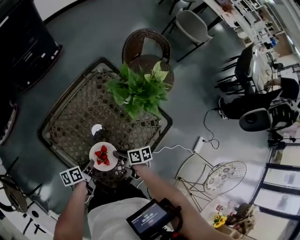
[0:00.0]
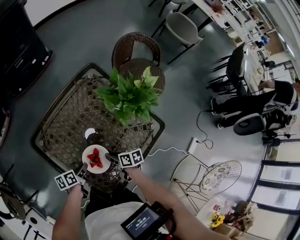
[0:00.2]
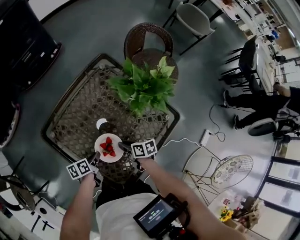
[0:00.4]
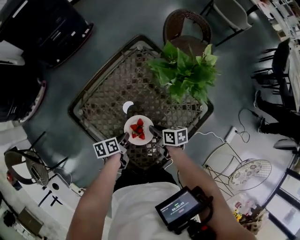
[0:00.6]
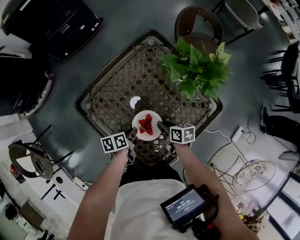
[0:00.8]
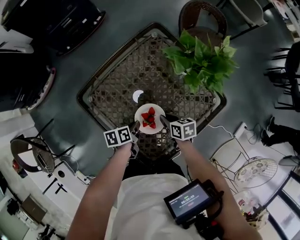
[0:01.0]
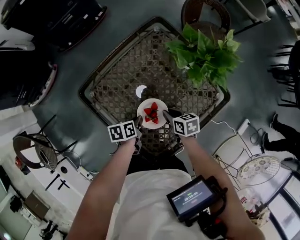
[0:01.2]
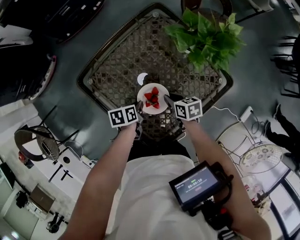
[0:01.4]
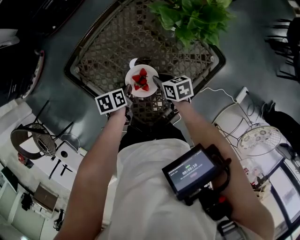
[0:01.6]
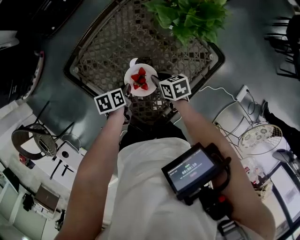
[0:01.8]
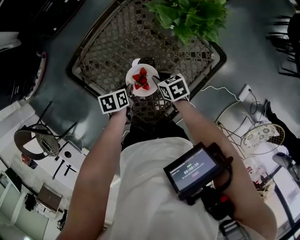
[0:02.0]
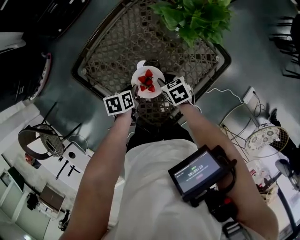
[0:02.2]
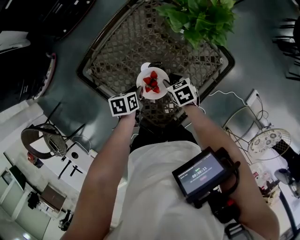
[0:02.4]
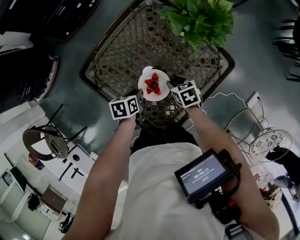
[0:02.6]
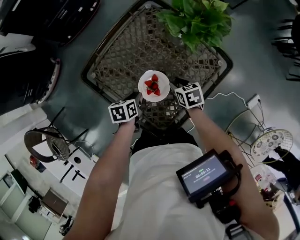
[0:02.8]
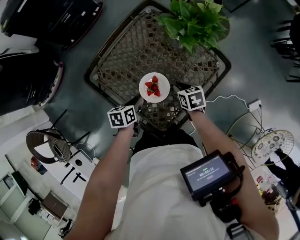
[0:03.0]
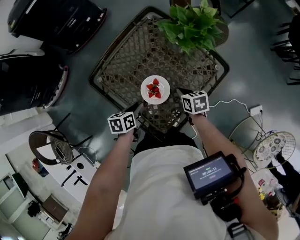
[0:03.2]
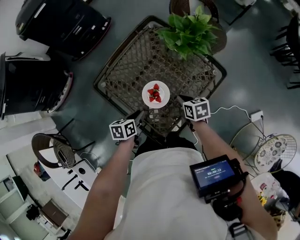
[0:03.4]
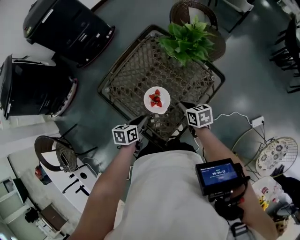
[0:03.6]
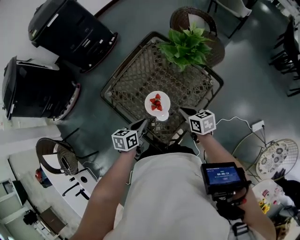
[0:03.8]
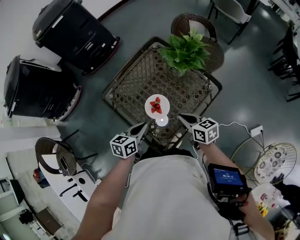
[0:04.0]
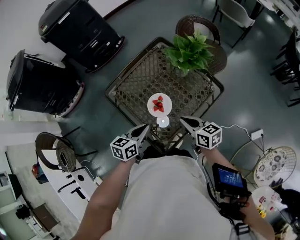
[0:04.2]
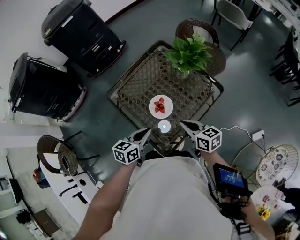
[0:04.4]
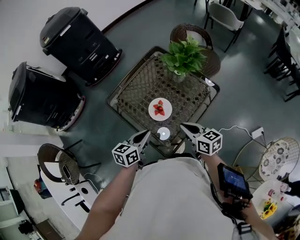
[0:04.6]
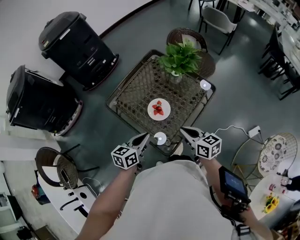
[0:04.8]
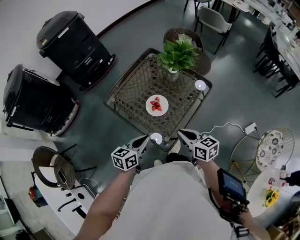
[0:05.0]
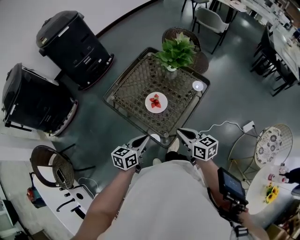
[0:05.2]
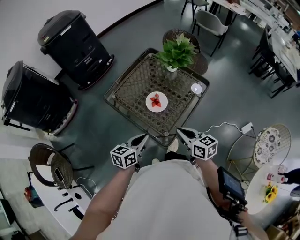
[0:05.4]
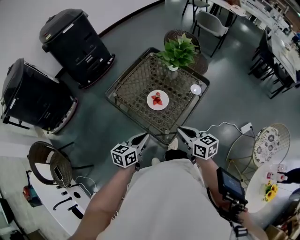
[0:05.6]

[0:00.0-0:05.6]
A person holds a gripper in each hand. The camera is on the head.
0:00.0 to 0:01.4: The right gripper swivels about 20 degrees.
0:01.4 to 0:02.8: The right gripper opens up.
0:02.8 to 0:04.2: The right gripper shifts roughly 20 cm upward, points its fingers approximately 30 degrees further upward, and closes its fingers.
0:04.2 to 0:05.6: The right gripper changes place by roughly 20 cm.

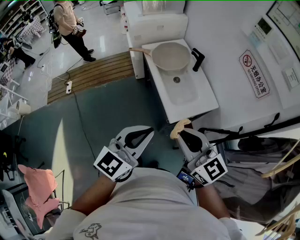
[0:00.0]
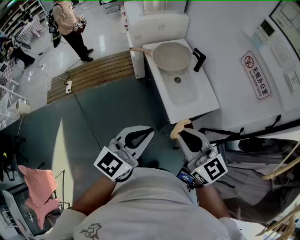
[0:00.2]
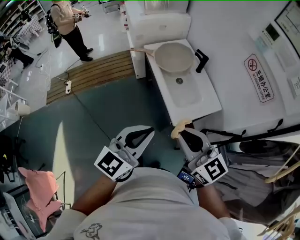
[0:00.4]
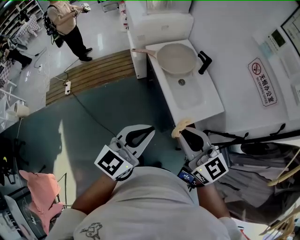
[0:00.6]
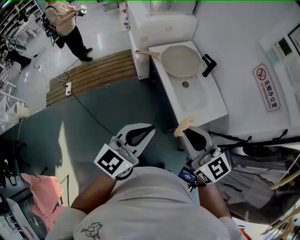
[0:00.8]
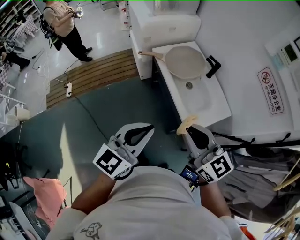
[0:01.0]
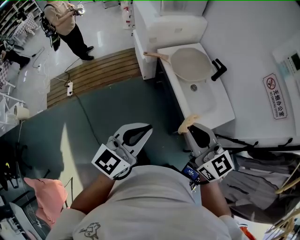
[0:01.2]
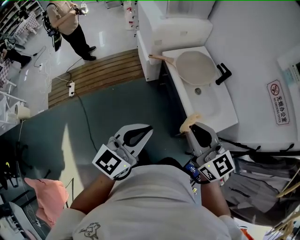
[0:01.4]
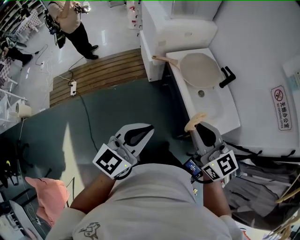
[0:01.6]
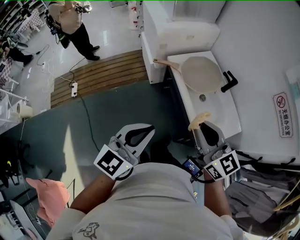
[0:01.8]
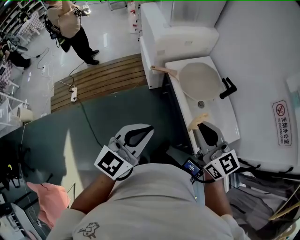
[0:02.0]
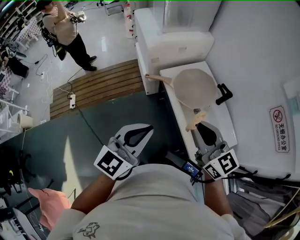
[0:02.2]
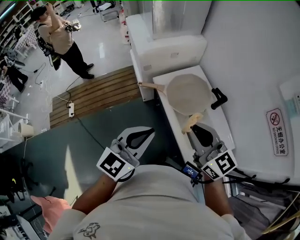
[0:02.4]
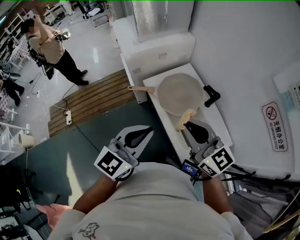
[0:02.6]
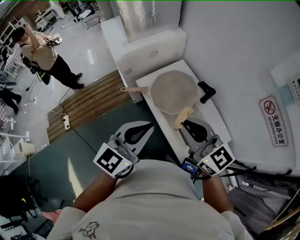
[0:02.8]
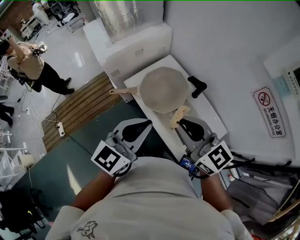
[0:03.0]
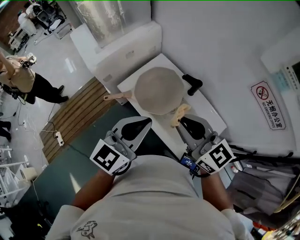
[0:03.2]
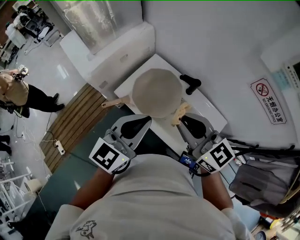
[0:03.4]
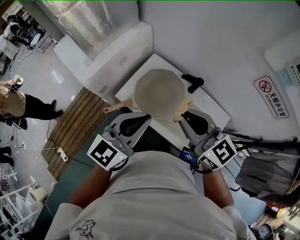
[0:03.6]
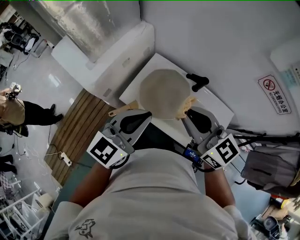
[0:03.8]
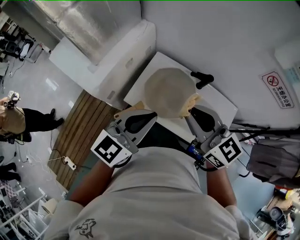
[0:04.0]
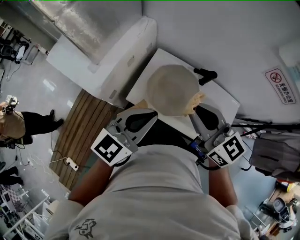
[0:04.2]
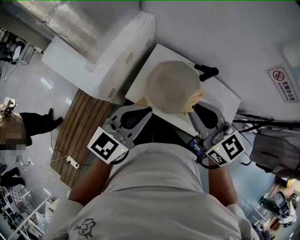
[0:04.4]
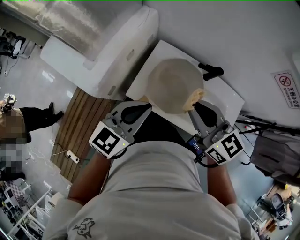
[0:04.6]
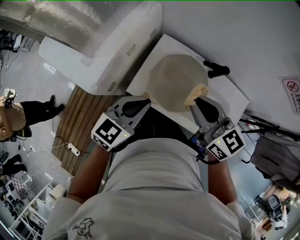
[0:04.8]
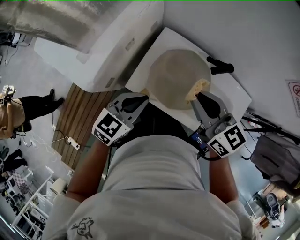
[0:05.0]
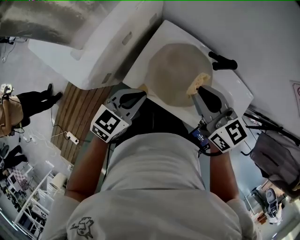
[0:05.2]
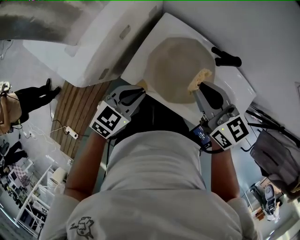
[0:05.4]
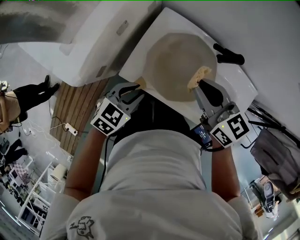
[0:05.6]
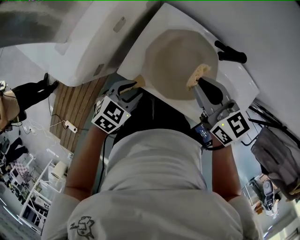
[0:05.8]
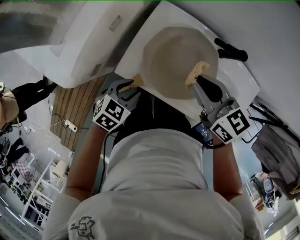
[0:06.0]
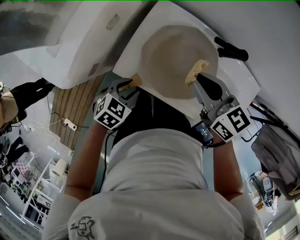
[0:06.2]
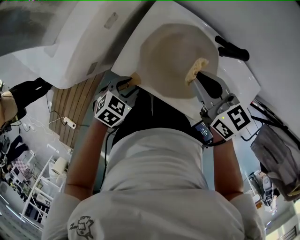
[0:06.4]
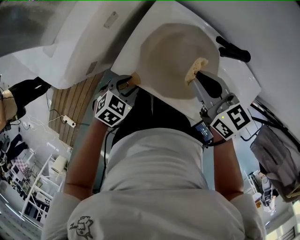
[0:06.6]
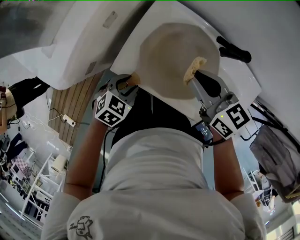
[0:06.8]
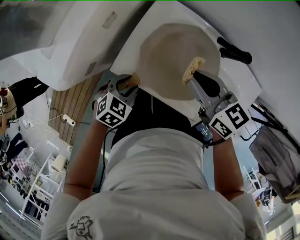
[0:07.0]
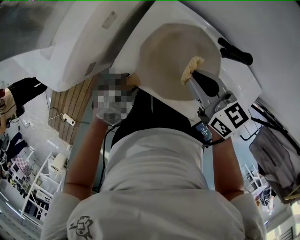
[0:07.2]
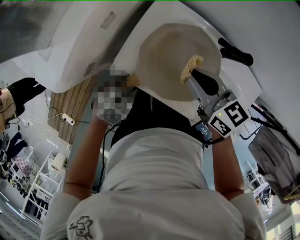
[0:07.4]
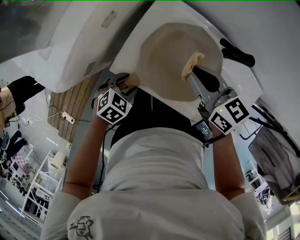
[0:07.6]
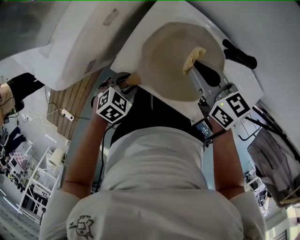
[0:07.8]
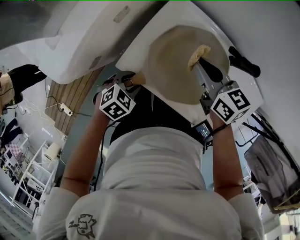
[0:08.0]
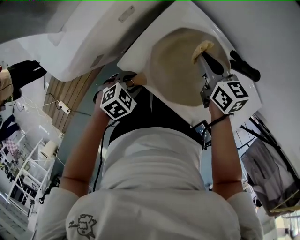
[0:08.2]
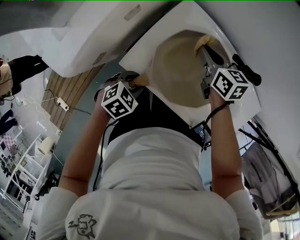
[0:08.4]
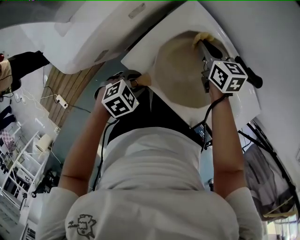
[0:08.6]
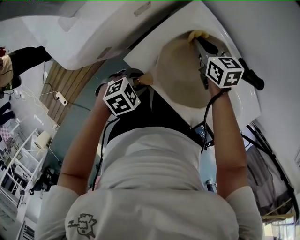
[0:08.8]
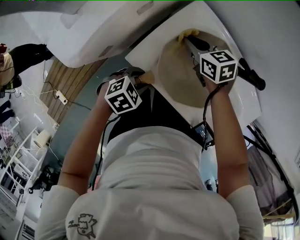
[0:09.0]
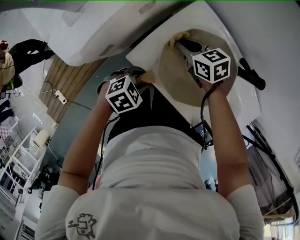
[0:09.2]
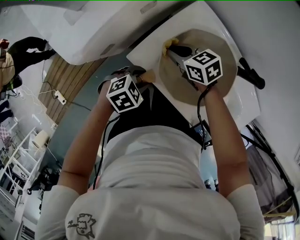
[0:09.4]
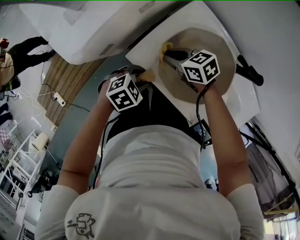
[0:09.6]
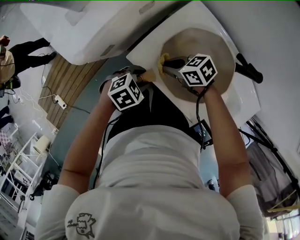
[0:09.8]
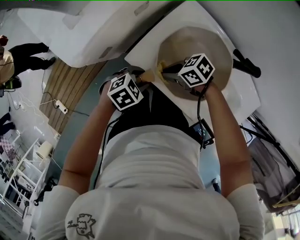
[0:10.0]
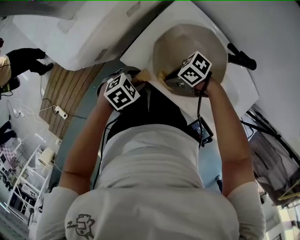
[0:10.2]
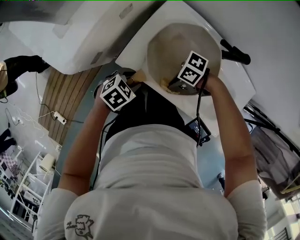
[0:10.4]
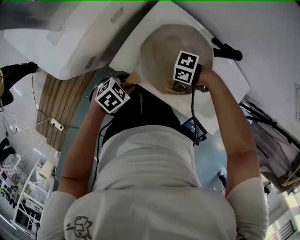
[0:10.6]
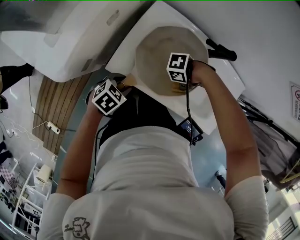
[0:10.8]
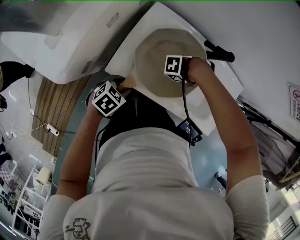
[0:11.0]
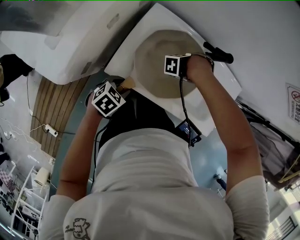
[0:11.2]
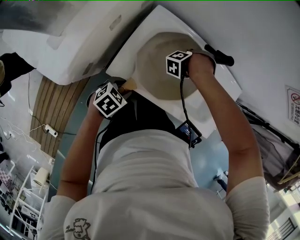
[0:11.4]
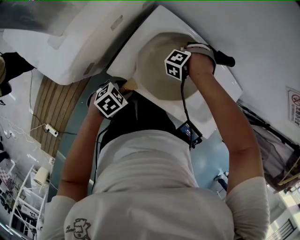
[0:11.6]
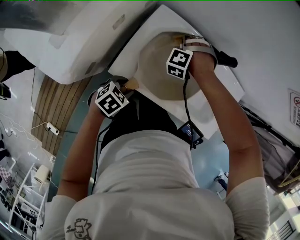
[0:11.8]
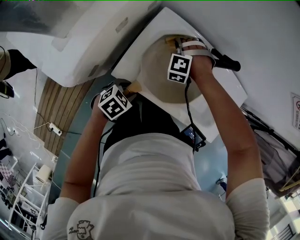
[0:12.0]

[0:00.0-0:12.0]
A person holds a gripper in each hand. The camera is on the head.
0:00.0 to 0:01.6: The grippers both shift to the left and forward by about 30 cm.
0:01.6 to 0:03.0: The two grippers go about 30 cm forward and to the right.
0:03.0 to 0:04.4: The right gripper changes place by approximately 20 cm, and swivels approximately 30 degrees. The left gripper changes place by roughly 25 cm, and changes its angle by roughly 30 degrees.
0:04.4 to 0:06.0: The right gripper travels downward and forward by roughly 20 cm, while the left gripper moves downward, roughly 30 cm, tilts its fingers about 40 degrees downward, and opens up.
0:06.0 to 0:07.6: Both grippers travel together downward, about 5 cm.
0:07.6 to 0:09.0: The right gripper shifts by approximately 15 cm.
0:09.0 to 0:10.4: The right gripper moves some 25 cm, and rotates roughly 60 degrees.
0:10.4 to 0:12.0: The right gripper ends up approximately 25 cm from where it was, and swivels roughly 100 degrees.

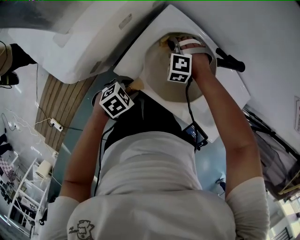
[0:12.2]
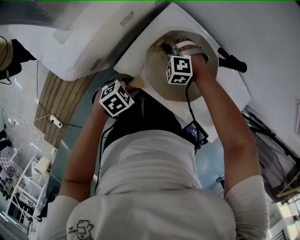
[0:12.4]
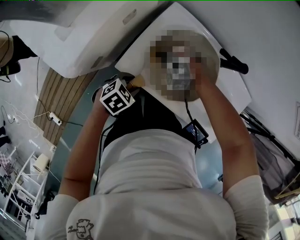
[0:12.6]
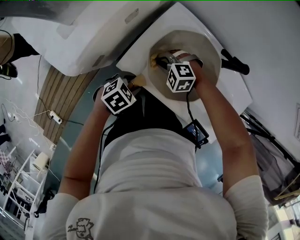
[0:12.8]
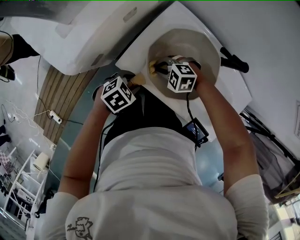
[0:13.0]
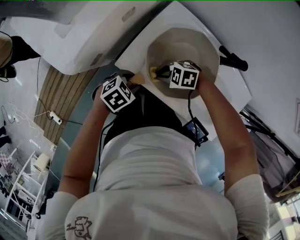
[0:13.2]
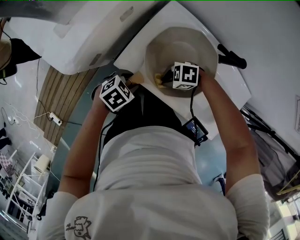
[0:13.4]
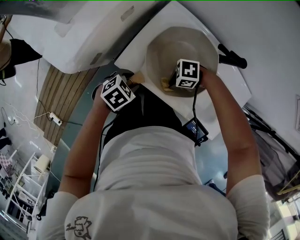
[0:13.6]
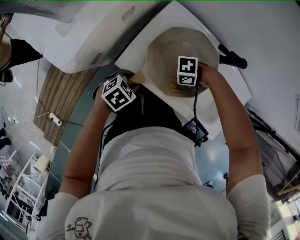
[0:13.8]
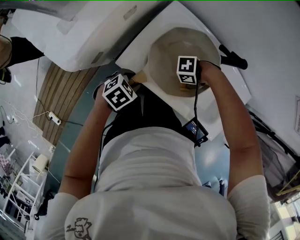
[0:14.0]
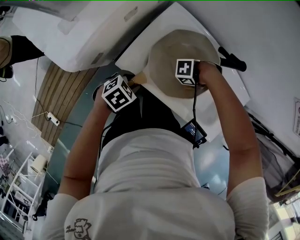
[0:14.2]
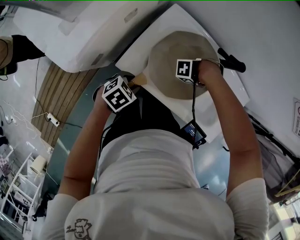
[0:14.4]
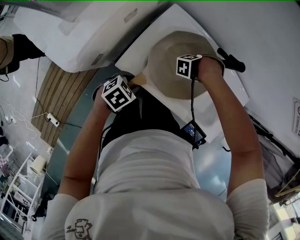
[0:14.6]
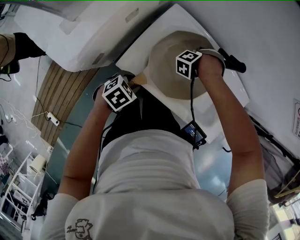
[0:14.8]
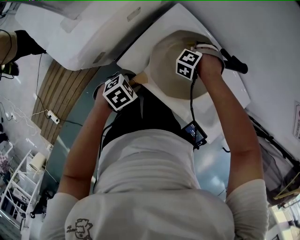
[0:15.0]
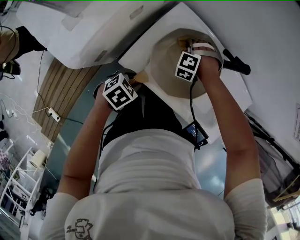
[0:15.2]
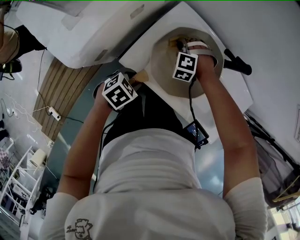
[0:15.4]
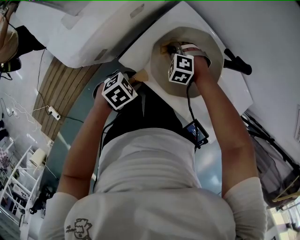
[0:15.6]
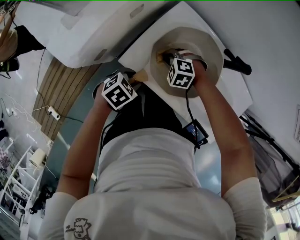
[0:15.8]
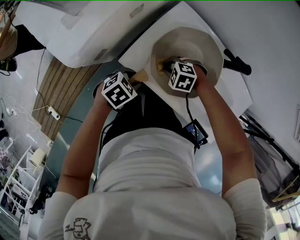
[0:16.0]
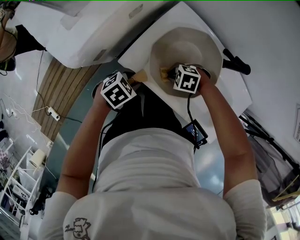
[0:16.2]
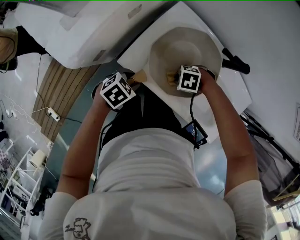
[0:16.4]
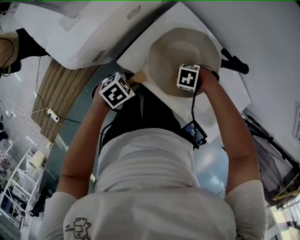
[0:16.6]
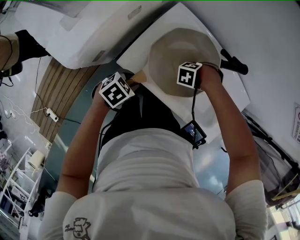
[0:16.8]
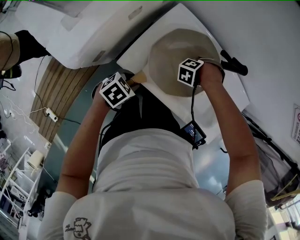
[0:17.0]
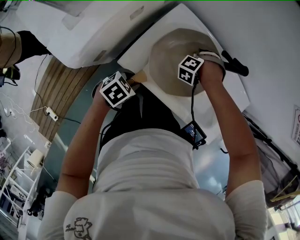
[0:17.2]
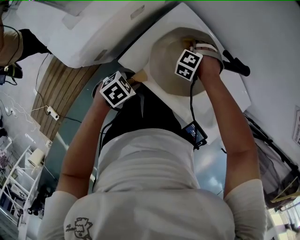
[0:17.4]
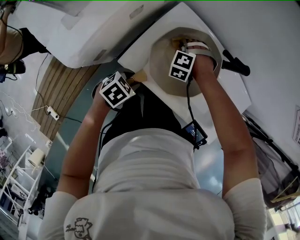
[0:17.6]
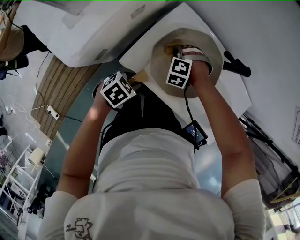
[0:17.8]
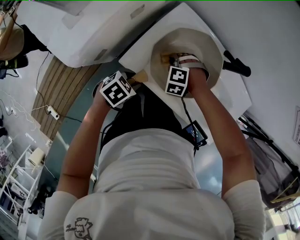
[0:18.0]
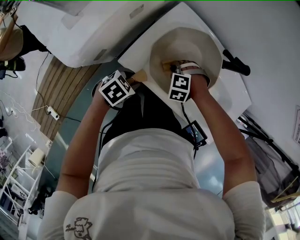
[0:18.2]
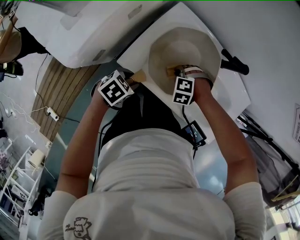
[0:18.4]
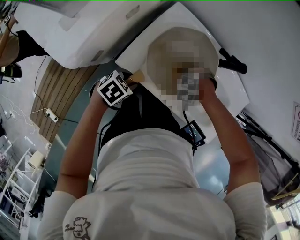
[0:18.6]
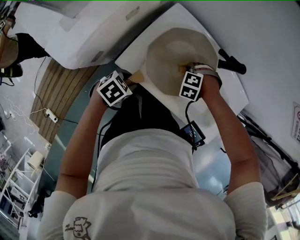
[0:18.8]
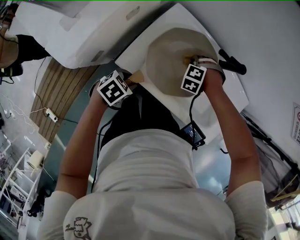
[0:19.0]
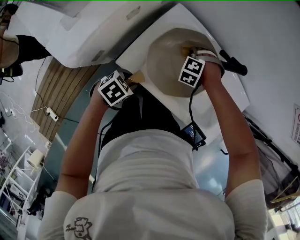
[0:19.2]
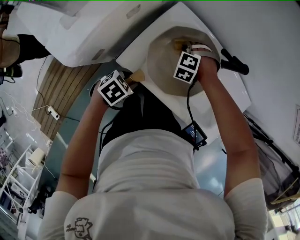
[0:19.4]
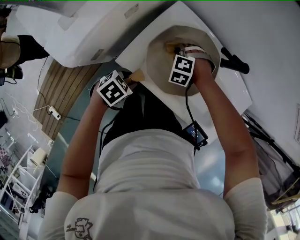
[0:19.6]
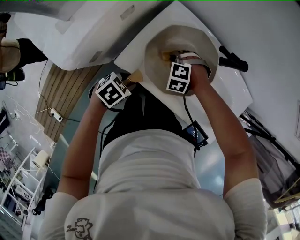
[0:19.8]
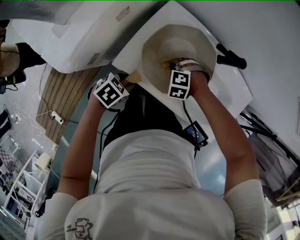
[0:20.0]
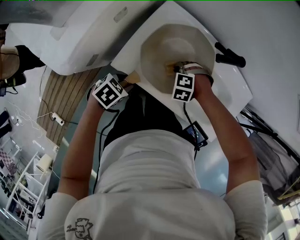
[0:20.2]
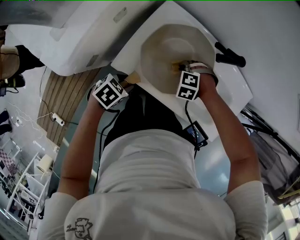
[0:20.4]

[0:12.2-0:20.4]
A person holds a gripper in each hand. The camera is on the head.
0:12.2 to 0:13.8: The right gripper shifts by roughly 25 cm, and changes its angle by roughly 80 degrees.
0:13.8 to 0:15.4: The right gripper changes place by about 20 cm, and rotates approximately 80 degrees.
0:15.4 to 0:17.2: The right gripper changes its angle by approximately 30 degrees.
